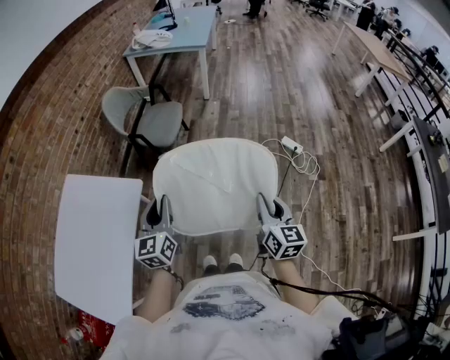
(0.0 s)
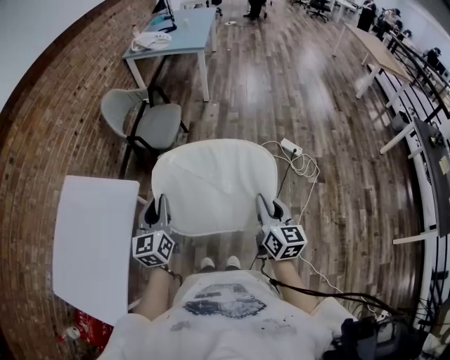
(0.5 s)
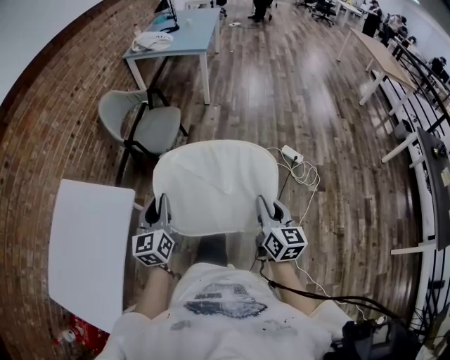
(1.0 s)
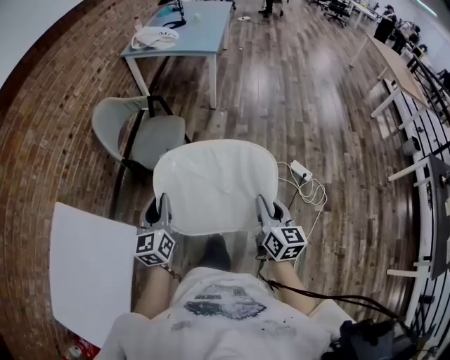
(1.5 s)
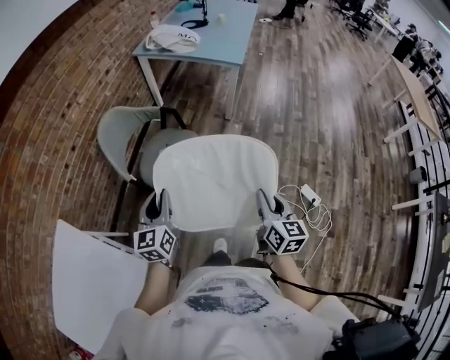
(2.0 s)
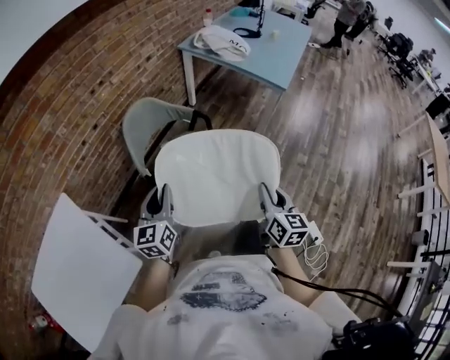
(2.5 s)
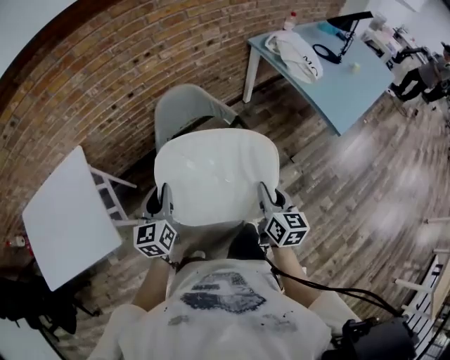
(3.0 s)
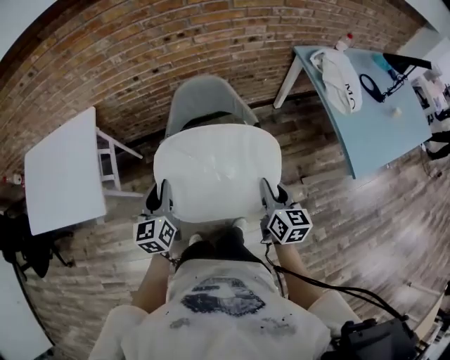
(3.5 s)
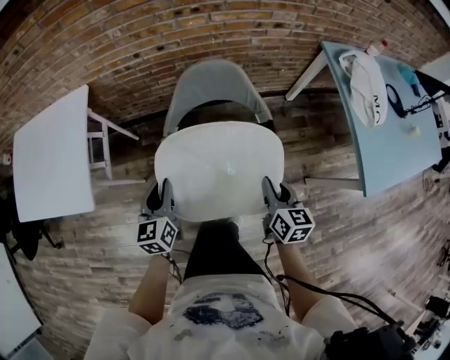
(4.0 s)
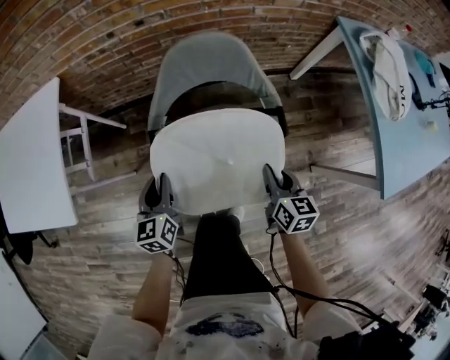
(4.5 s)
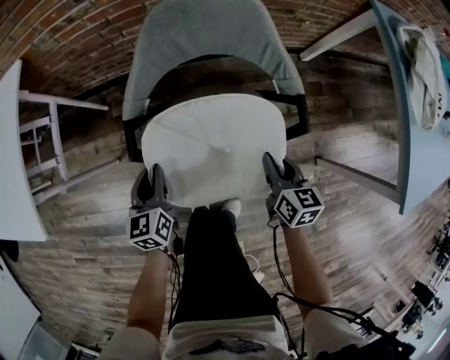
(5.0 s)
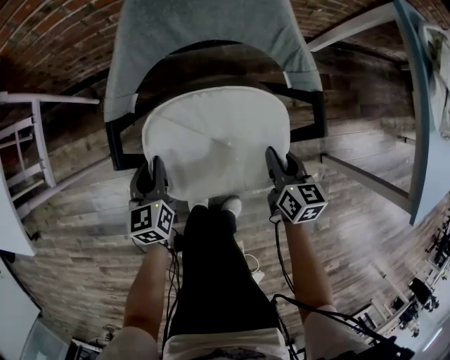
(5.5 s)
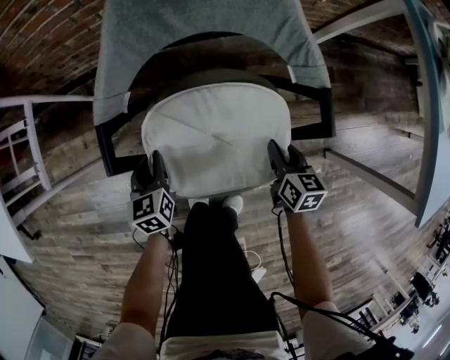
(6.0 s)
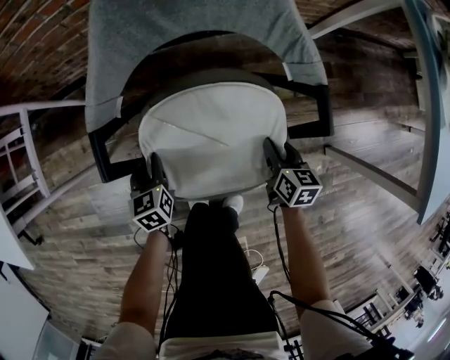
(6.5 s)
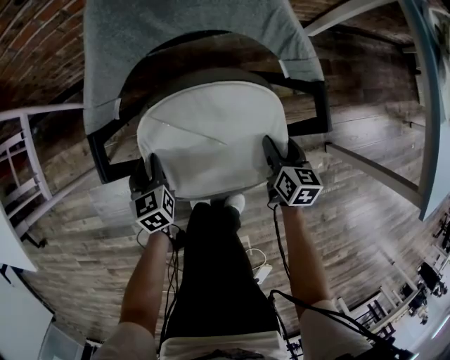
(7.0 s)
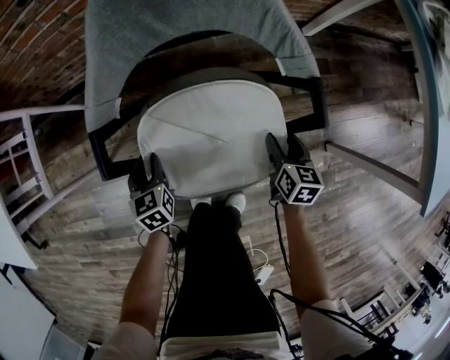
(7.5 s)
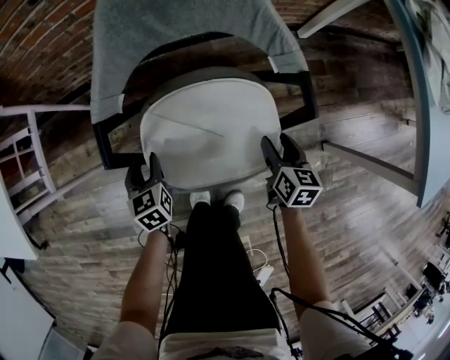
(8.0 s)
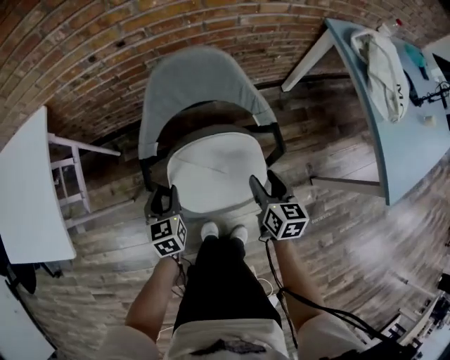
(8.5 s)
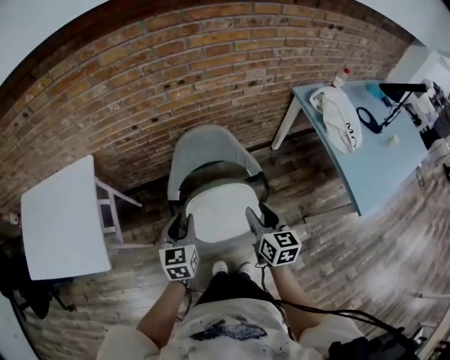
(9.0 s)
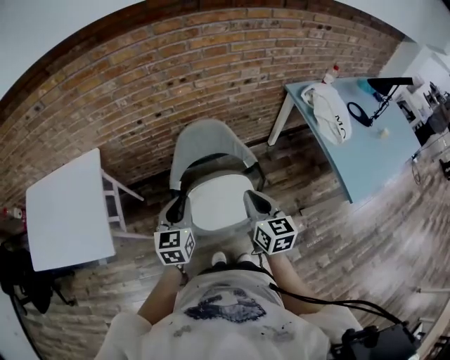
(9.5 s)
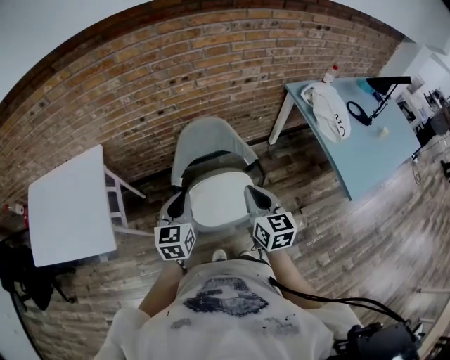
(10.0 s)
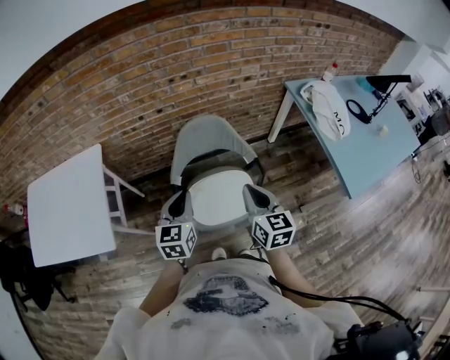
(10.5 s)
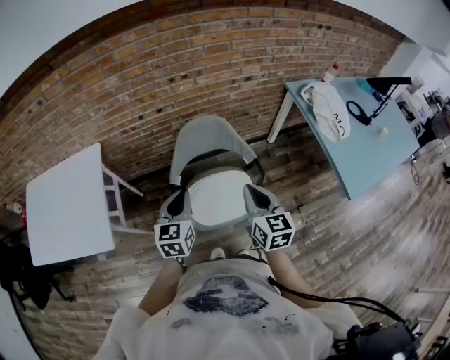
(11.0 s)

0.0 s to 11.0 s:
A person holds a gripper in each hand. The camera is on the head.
0.0 to 2.0 s: The pair of grippers is taken forward, some 50 cm.
2.0 to 3.5 s: The left gripper moves about 15 cm, and swivels roughly 60 degrees, while the right gripper shifts by about 50 cm, and rotates roughly 60 degrees.
3.5 to 5.5 s: The left gripper goes about 50 cm downward. Meanwhile the right gripper heads downward and forward, covering about 50 cm.
5.5 to 7.5 s: The left gripper heads downward, covering about 10 cm. Meanwhile the right gripper is displaced downward and to the right by roughly 10 cm, and opens up.
7.5 to 9.0 s: The grippers both shift upward by roughly 50 cm. The right gripper changes its angle by some 20 degrees. The left gripper swivels approximately 30 degrees.
9.0 to 11.0 s: Both grippers travel together upward, roughly 10 cm. The left gripper closes up. The right gripper closes up.

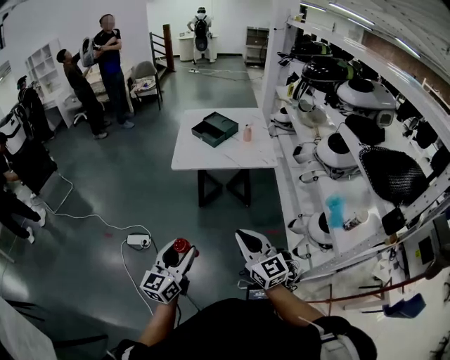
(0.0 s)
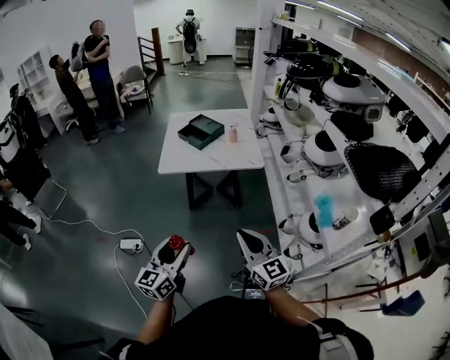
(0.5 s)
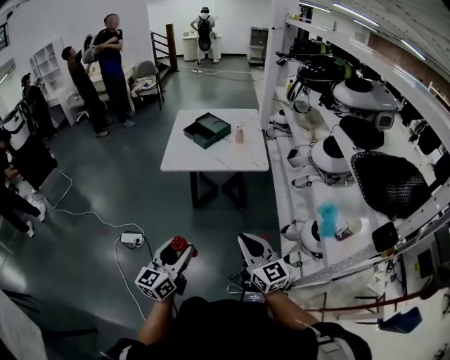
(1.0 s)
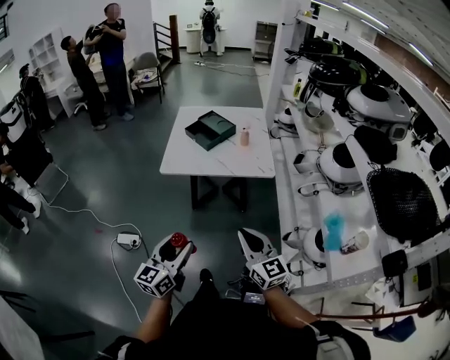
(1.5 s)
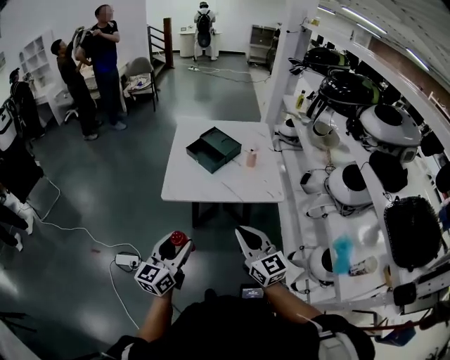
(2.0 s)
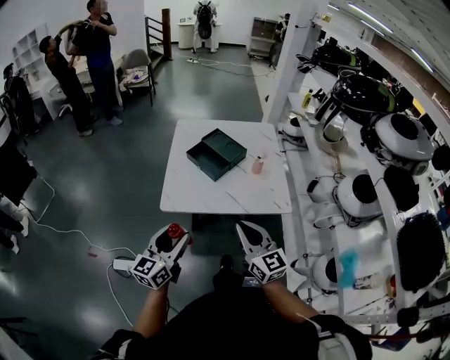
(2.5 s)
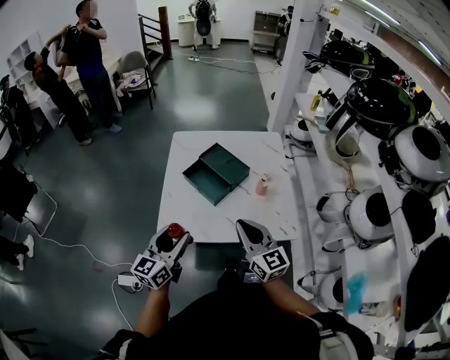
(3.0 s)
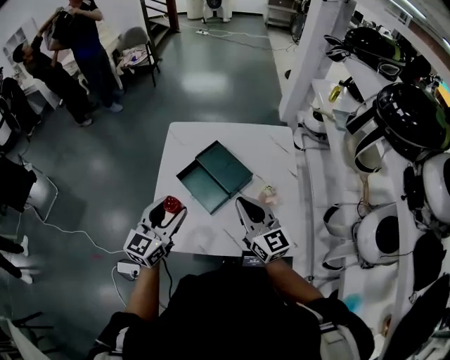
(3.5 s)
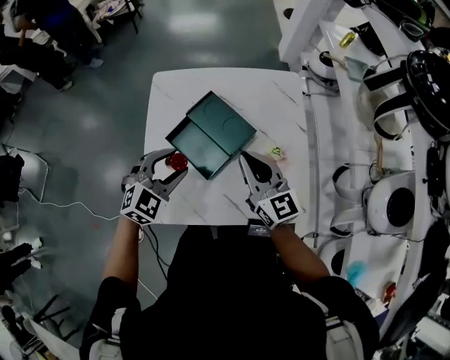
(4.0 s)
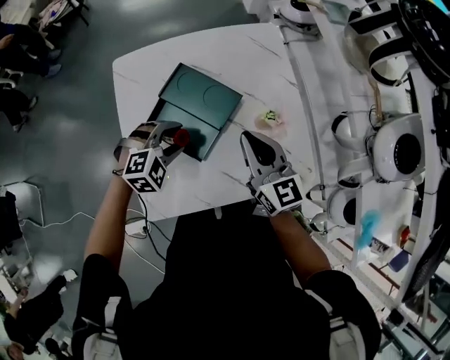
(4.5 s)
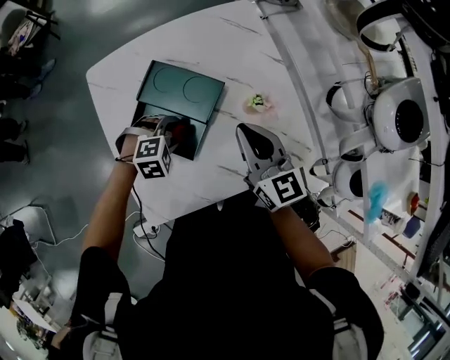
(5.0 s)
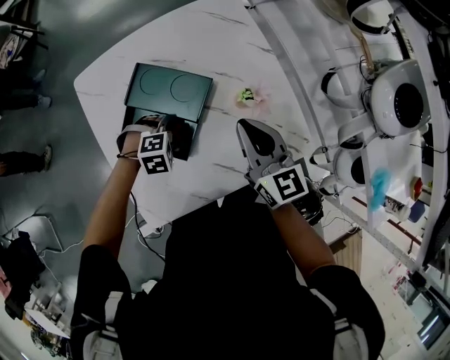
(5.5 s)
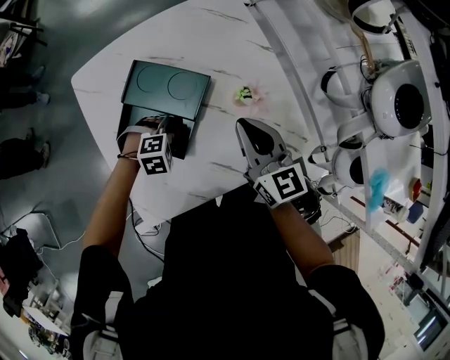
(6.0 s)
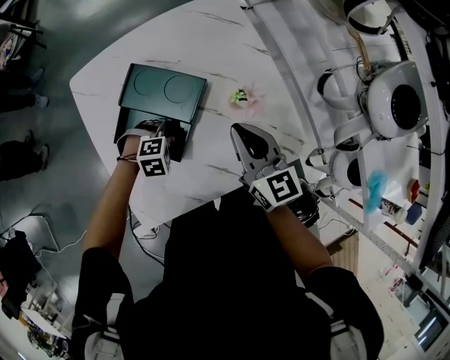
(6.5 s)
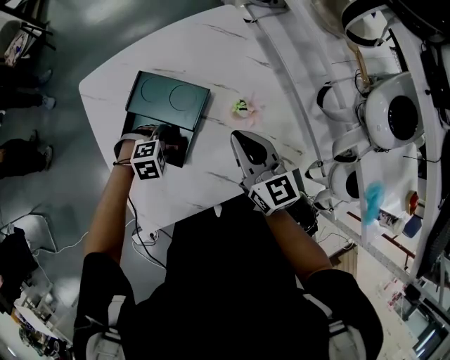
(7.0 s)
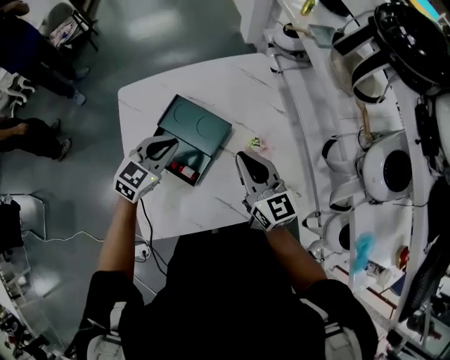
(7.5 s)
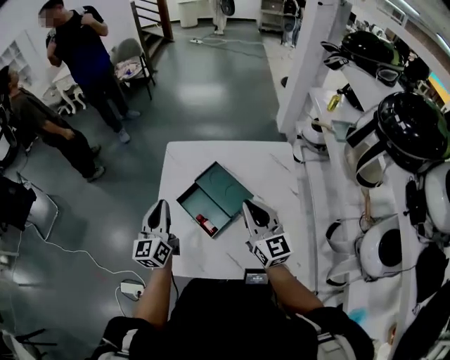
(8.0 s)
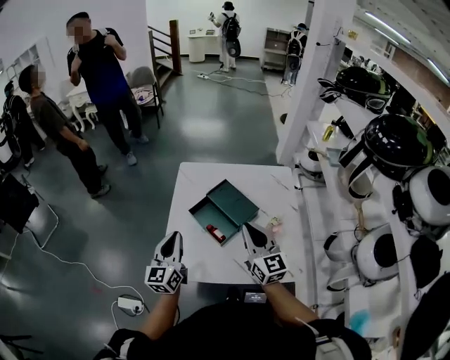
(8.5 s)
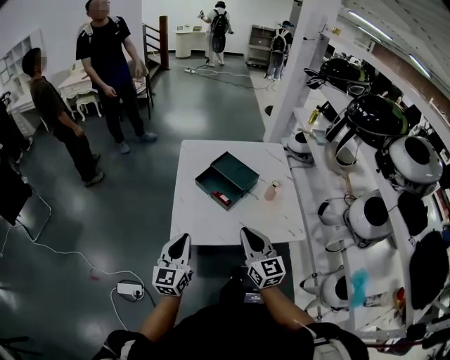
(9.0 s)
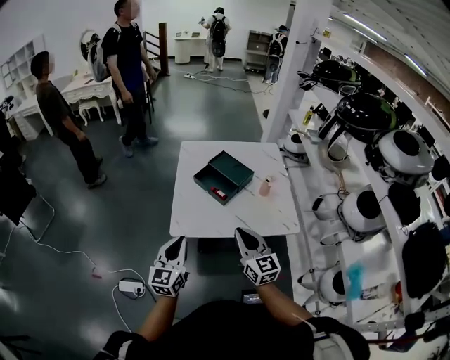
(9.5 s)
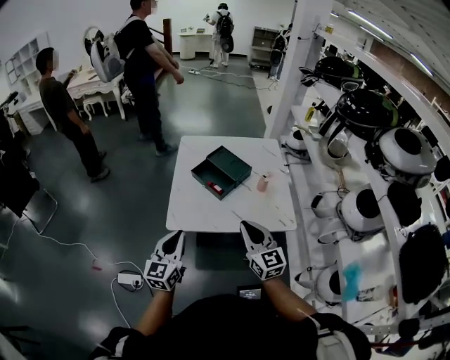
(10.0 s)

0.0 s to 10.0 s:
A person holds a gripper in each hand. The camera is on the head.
0.0 to 2.0 s: Both grippers move forward, about 25 cm.
2.0 to 4.0 s: The pair of grippers is taken forward, roughly 50 cm. The left gripper tilts its fingers approximately 40 degrees downward.
4.0 to 6.0 s: The left gripper travels downward by some 25 cm, and tilts its fingers roughly 40 degrees downward. The right gripper changes place by about 10 cm, and changes its angle by approximately 30 degrees.
6.0 to 8.0 s: The right gripper is displaced upward by approximately 10 cm, and changes its angle by about 30 degrees. The left gripper moves upward, approximately 30 cm, tips its fingers upward by roughly 70 degrees, and closes up.
8.0 to 10.0 s: The two grippers go about 35 cm backward.

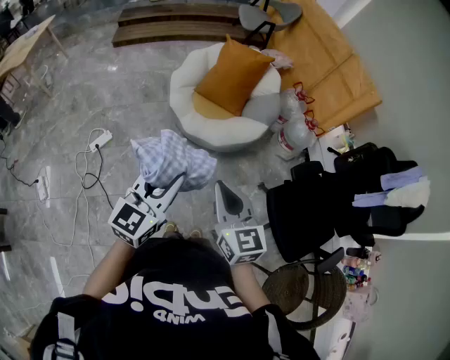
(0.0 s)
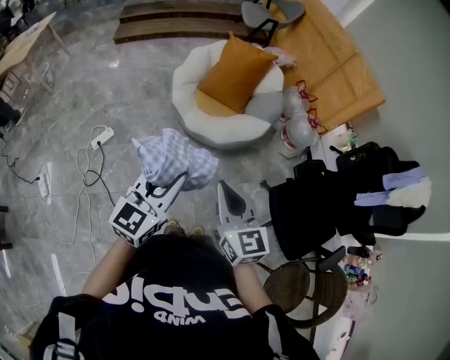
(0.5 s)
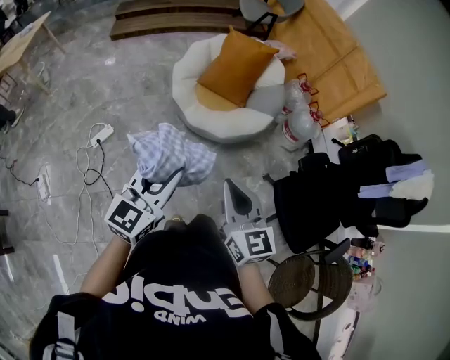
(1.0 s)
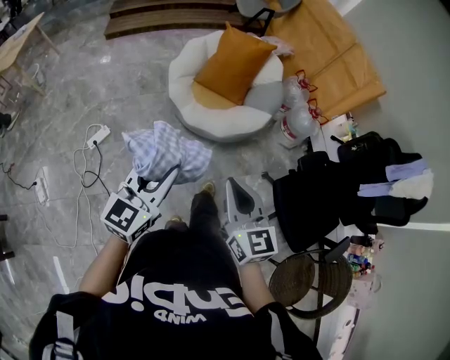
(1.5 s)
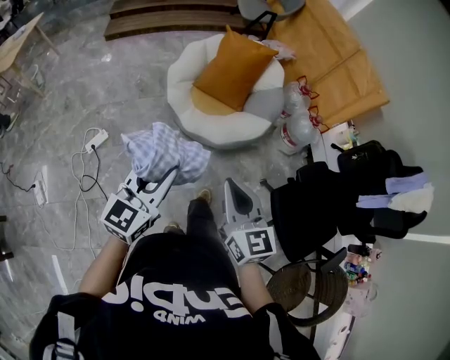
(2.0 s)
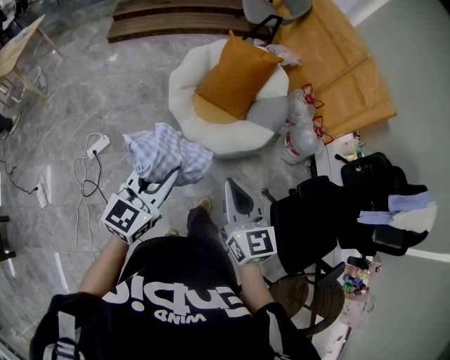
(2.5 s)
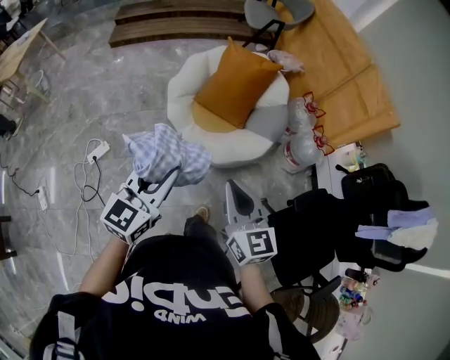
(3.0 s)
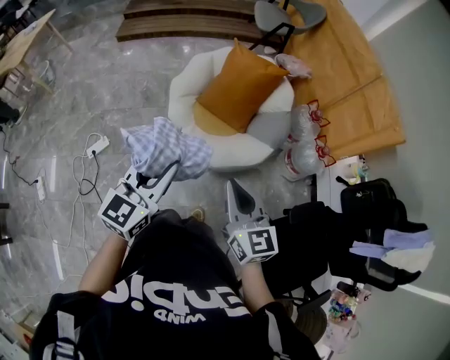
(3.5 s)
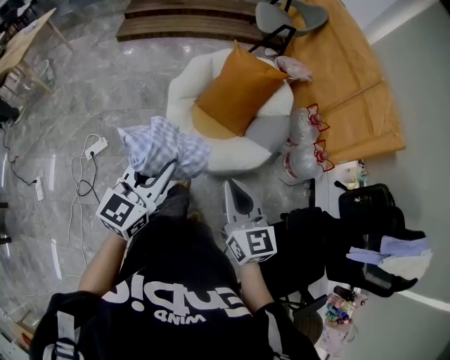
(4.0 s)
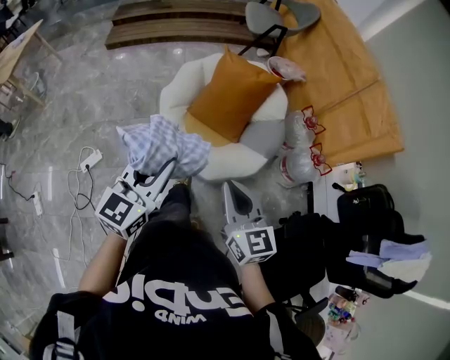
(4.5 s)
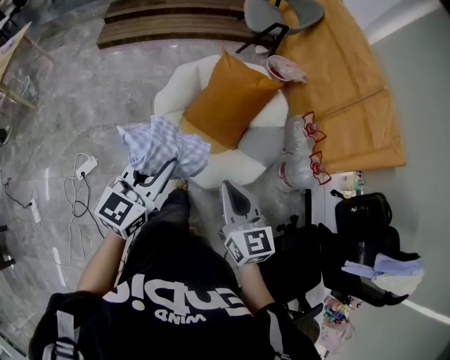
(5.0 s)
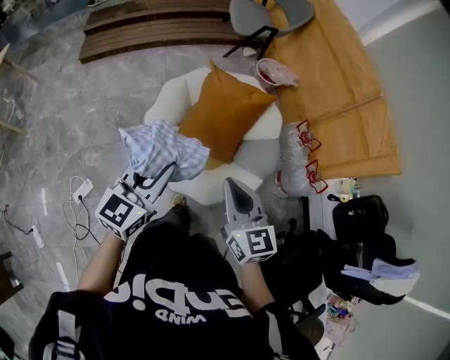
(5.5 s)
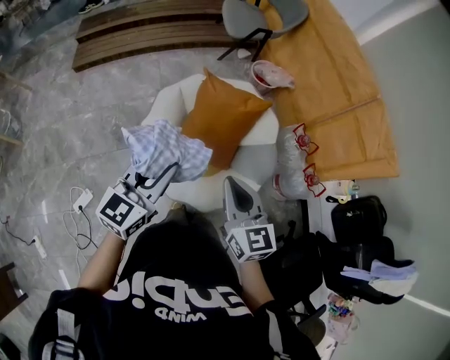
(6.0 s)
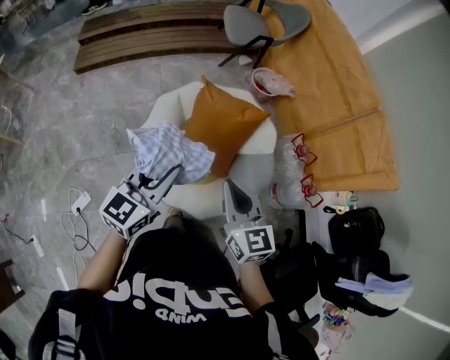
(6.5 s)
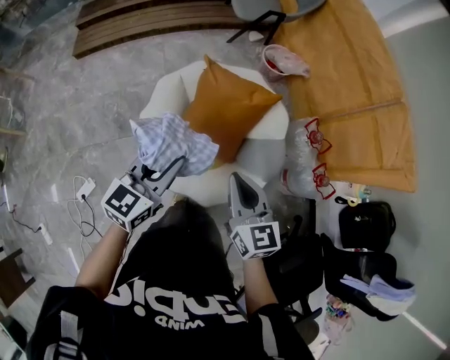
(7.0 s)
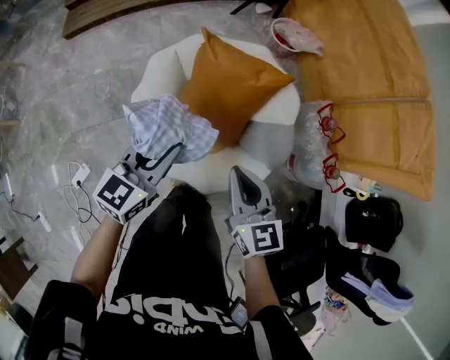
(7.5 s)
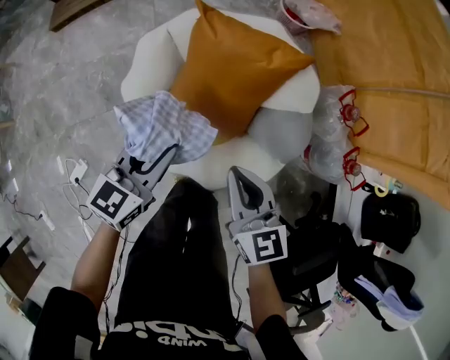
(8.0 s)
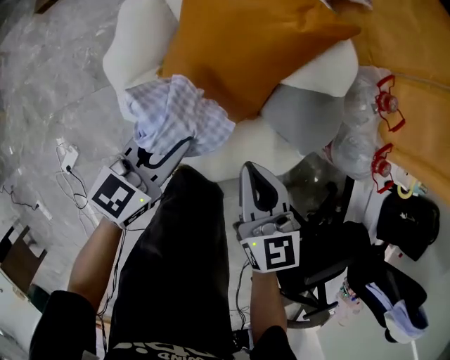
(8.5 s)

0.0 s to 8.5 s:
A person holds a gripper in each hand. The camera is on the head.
0.0 to 2.0 s: The right gripper goes roughly 5 cm forward. Meanwhile the left gripper goes about 10 cm forward and to the left.
2.0 to 4.0 s: Both grippers move forward, about 20 cm.
4.0 to 6.5 s: The grippers both shift forward by about 35 cm.
6.5 to 8.5 s: The two grippers go approximately 40 cm downward. The left gripper turns by roughly 20 degrees.
